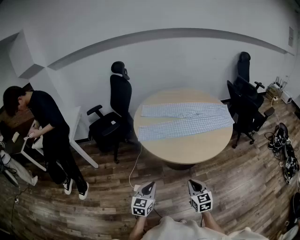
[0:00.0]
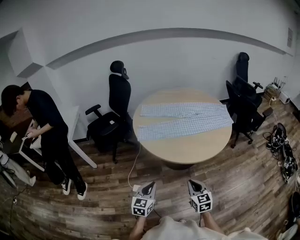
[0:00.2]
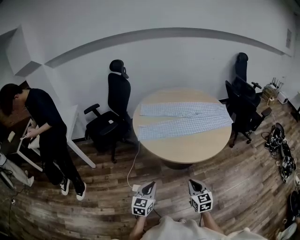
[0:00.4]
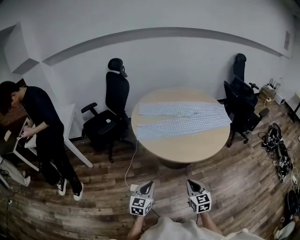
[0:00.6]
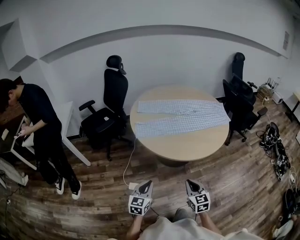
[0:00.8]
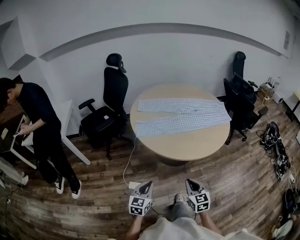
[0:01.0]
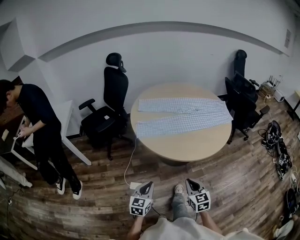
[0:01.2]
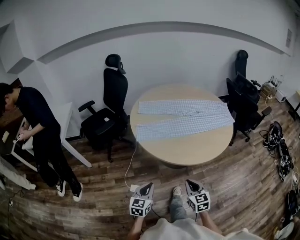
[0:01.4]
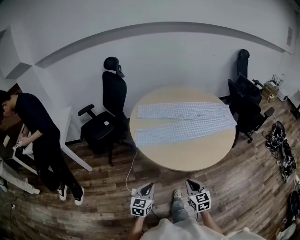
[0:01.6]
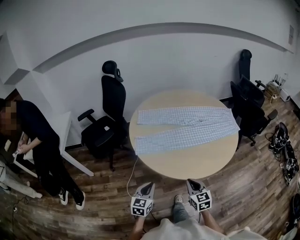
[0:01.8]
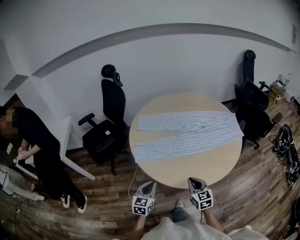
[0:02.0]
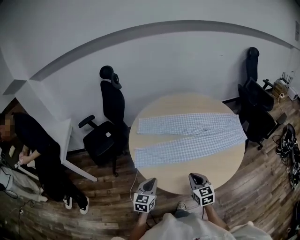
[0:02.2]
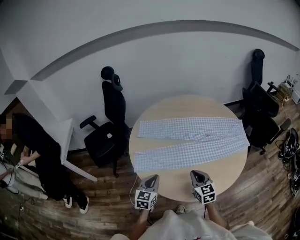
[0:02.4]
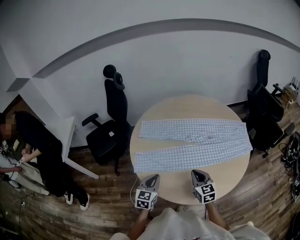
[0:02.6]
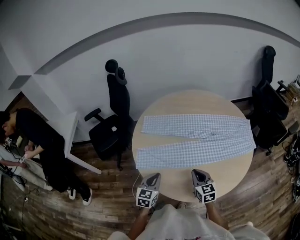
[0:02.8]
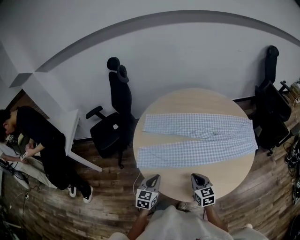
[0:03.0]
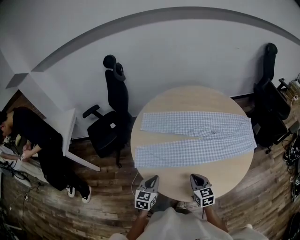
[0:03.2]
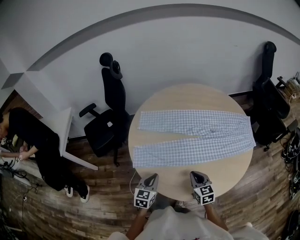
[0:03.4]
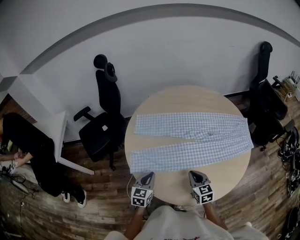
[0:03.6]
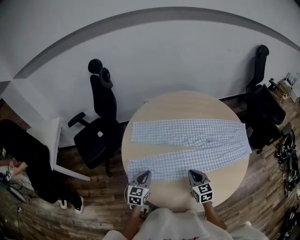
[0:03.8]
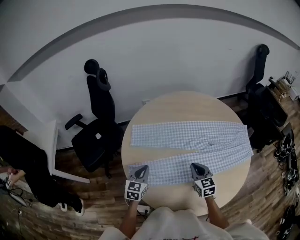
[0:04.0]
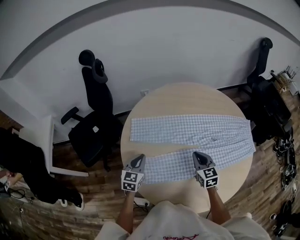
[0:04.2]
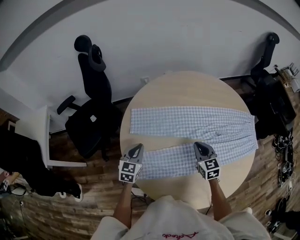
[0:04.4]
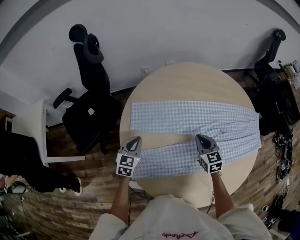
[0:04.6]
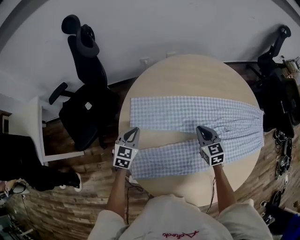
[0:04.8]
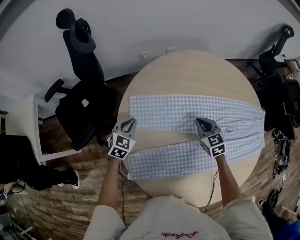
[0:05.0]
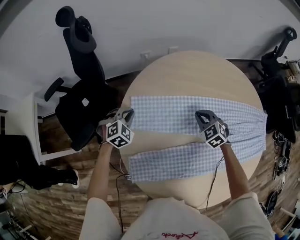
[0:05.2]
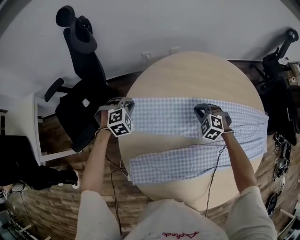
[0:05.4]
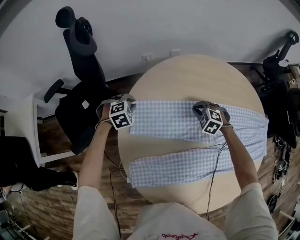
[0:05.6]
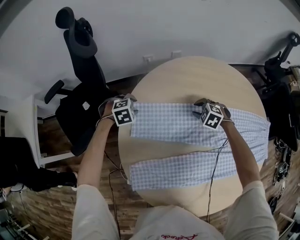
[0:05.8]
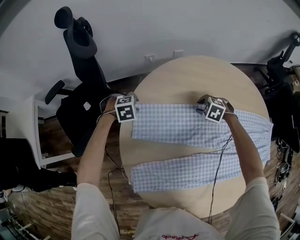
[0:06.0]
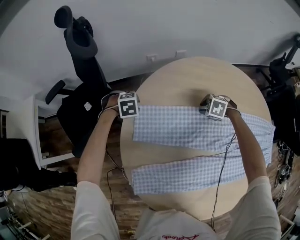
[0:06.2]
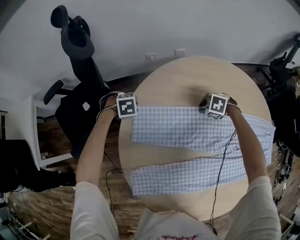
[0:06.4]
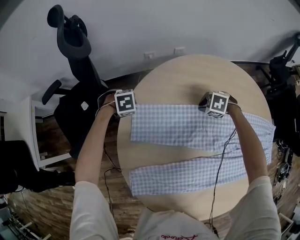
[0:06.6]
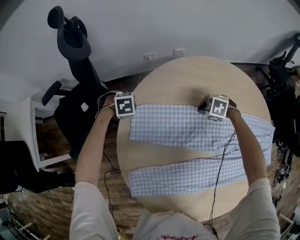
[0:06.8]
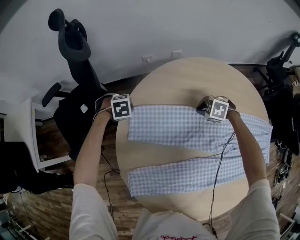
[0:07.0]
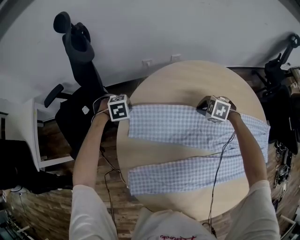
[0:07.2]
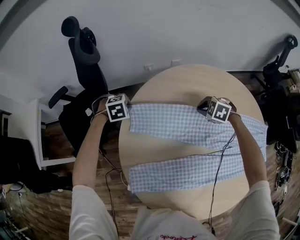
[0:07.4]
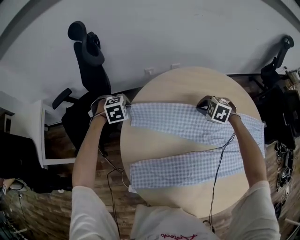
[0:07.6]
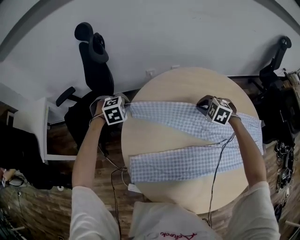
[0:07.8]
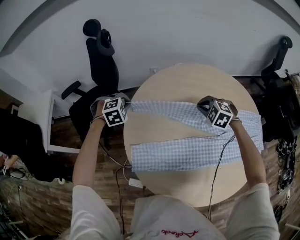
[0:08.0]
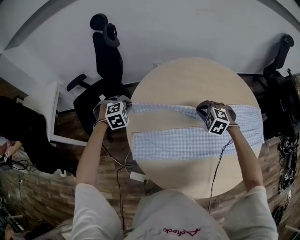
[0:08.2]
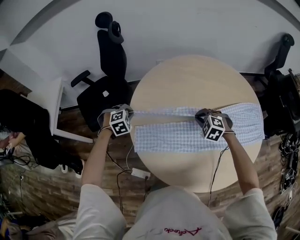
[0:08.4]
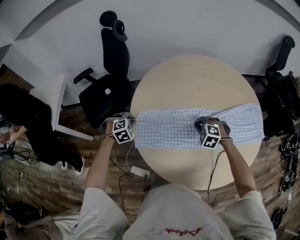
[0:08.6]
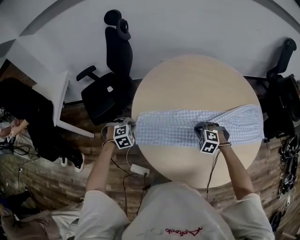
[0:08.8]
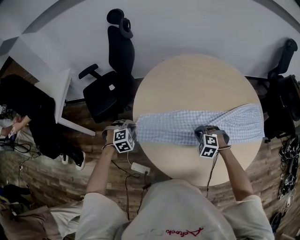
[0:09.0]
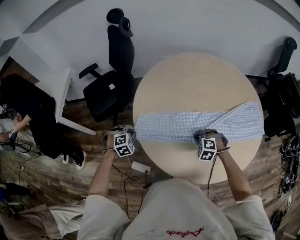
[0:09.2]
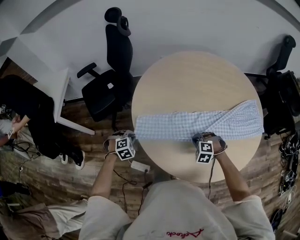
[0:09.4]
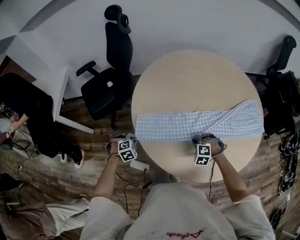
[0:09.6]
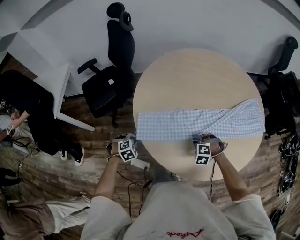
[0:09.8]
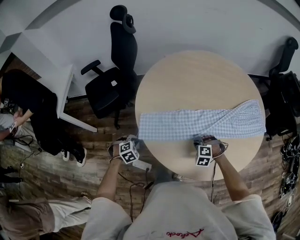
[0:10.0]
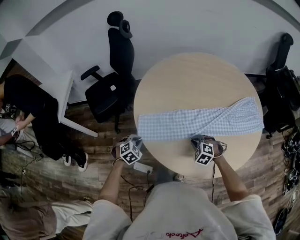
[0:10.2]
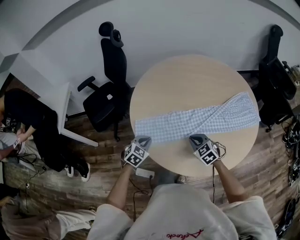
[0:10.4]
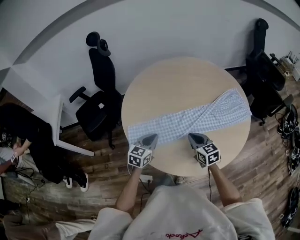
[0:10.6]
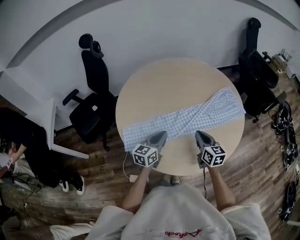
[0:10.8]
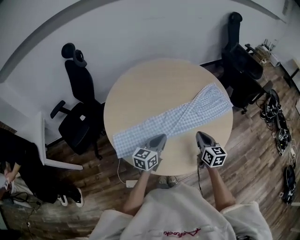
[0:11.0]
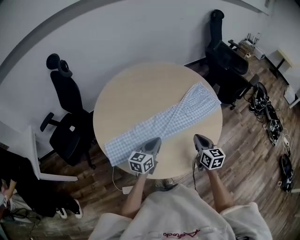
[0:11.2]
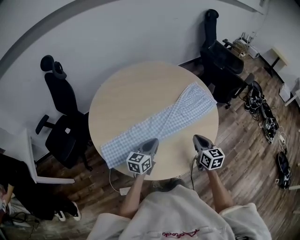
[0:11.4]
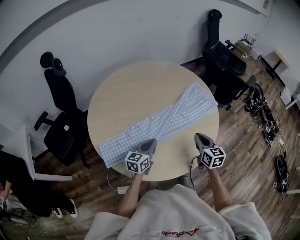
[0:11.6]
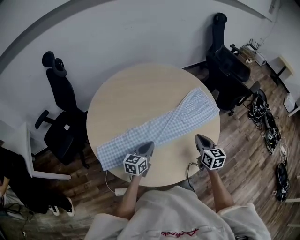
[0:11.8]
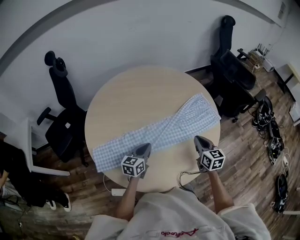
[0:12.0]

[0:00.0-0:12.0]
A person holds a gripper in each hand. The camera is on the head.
0:00.0 to 0:01.6: The two grippers go approximately 10 cm forward and to the left.
0:01.6 to 0:03.0: The two grippers go about 25 cm forward.
0:03.0 to 0:04.4: The two grippers go roughly 30 cm forward.
0:04.4 to 0:06.0: The left gripper changes place by roughly 30 cm, angles its fingers downward, by roughly 50 degrees, and opens, while the right gripper ends up some 30 cm from where it was, angles its fingers downward, by some 50 degrees, and opens up.
0:06.0 to 0:07.6: Both grippers travel together upward, approximately 10 cm. The right gripper closes. Meanwhile the left gripper closes its fingers.
0:07.6 to 0:09.0: The grippers both shift backward by about 35 cm.
0:09.0 to 0:10.4: The right gripper is displaced backward by about 10 cm, travels downward and back again, approximately 10 cm each way, and rotates approximately 50 degrees. The left gripper shifts some 15 cm backward and to the right, and swivels about 30 degrees.
0:10.4 to 0:12.0: The right gripper shifts by approximately 30 cm, and changes its angle by roughly 50 degrees. Meanwhile the left gripper travels upward and back again, some 10 cm each way, and rotates some 40 degrees.

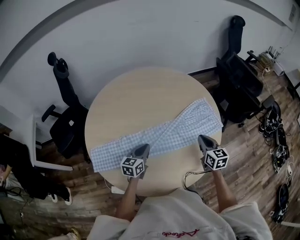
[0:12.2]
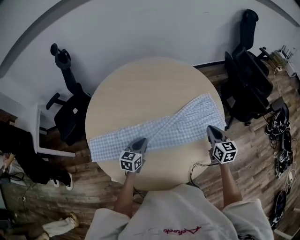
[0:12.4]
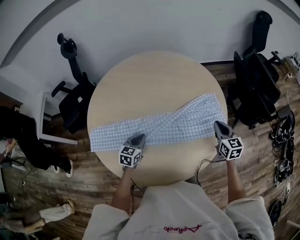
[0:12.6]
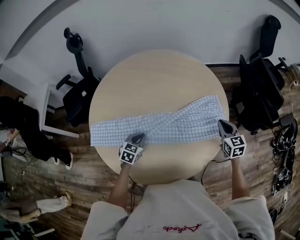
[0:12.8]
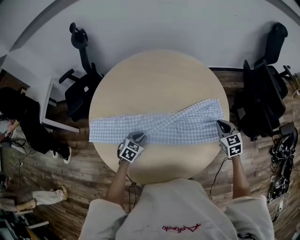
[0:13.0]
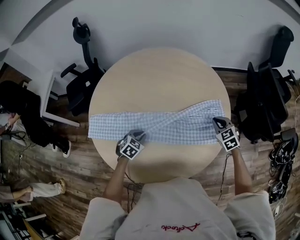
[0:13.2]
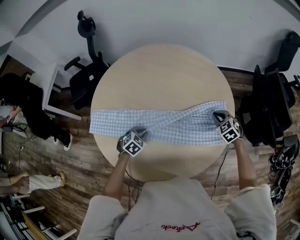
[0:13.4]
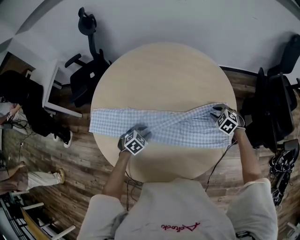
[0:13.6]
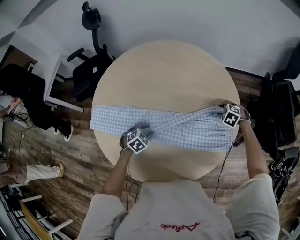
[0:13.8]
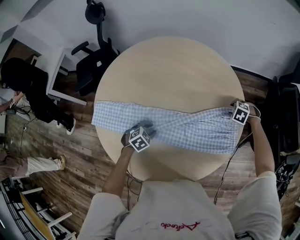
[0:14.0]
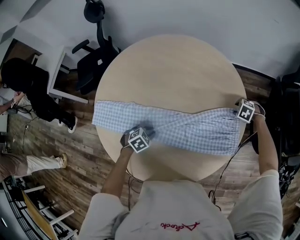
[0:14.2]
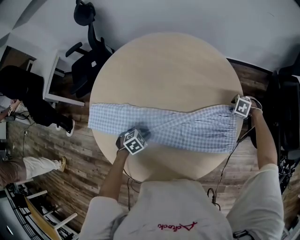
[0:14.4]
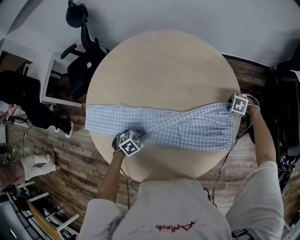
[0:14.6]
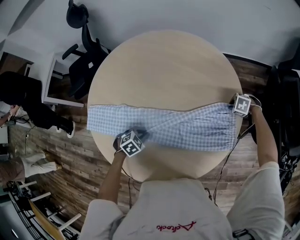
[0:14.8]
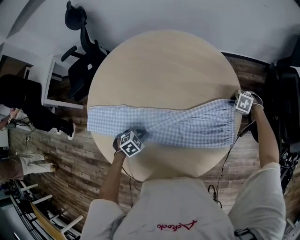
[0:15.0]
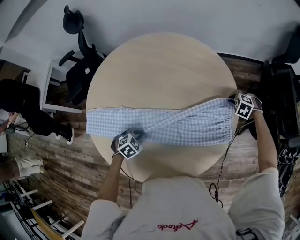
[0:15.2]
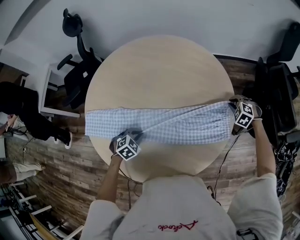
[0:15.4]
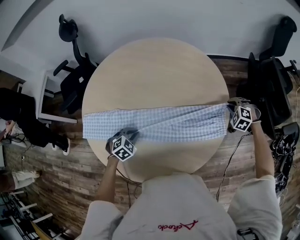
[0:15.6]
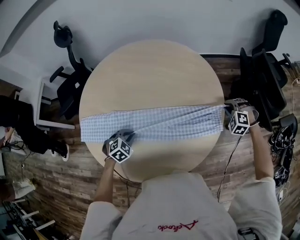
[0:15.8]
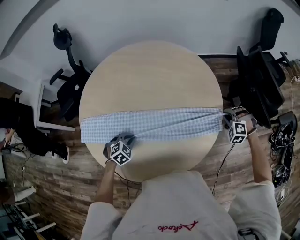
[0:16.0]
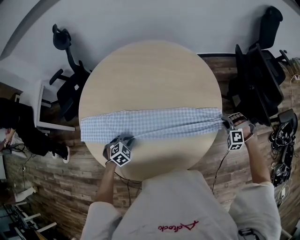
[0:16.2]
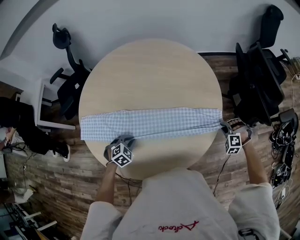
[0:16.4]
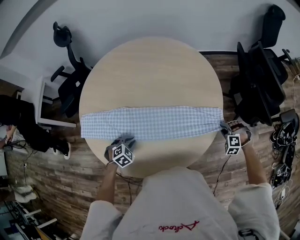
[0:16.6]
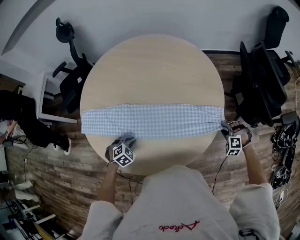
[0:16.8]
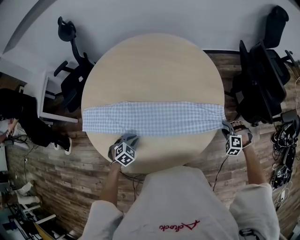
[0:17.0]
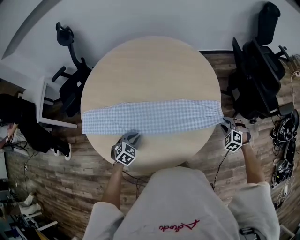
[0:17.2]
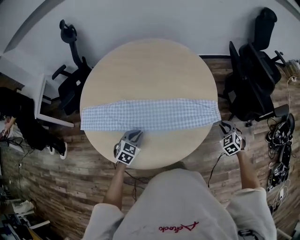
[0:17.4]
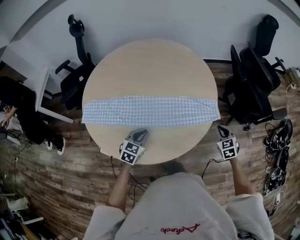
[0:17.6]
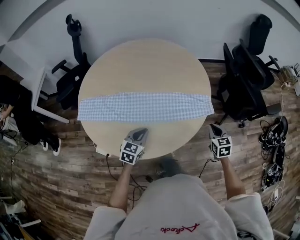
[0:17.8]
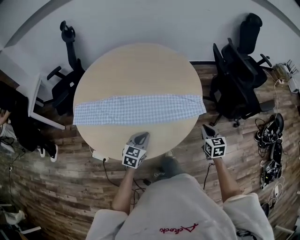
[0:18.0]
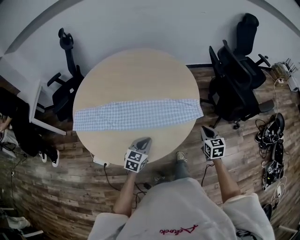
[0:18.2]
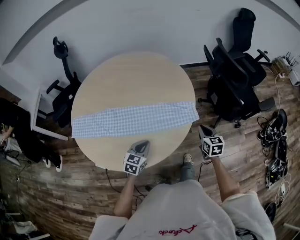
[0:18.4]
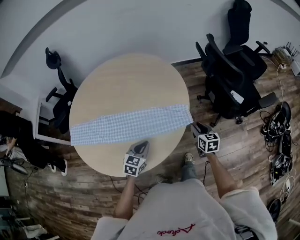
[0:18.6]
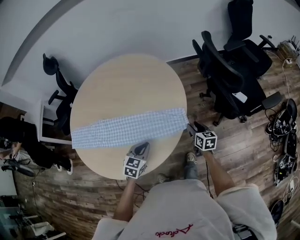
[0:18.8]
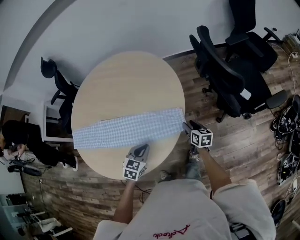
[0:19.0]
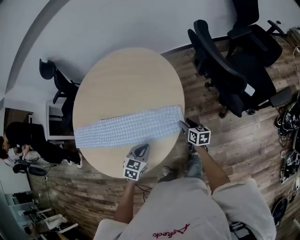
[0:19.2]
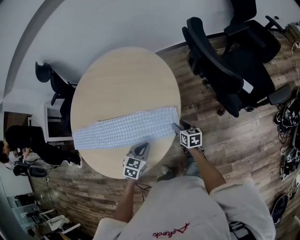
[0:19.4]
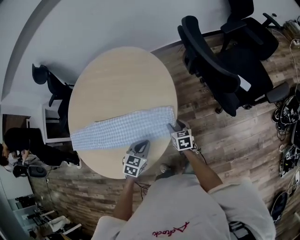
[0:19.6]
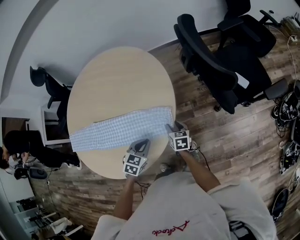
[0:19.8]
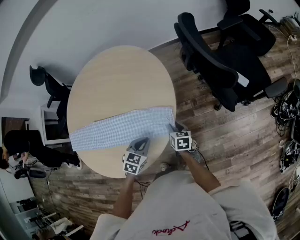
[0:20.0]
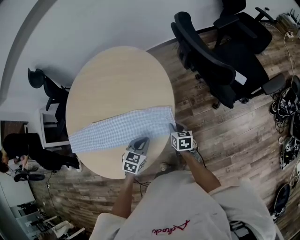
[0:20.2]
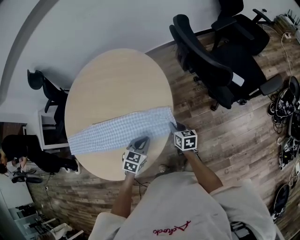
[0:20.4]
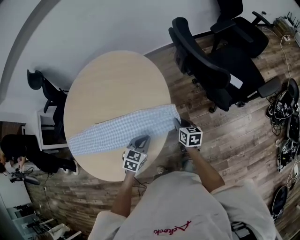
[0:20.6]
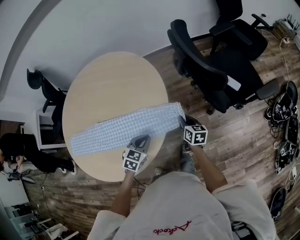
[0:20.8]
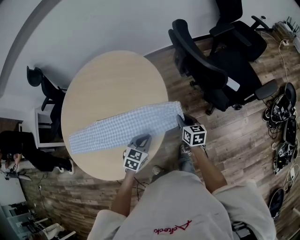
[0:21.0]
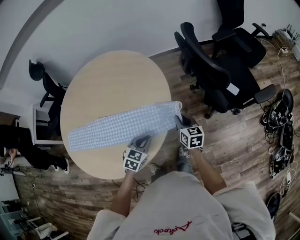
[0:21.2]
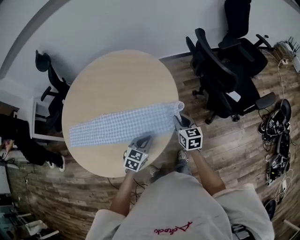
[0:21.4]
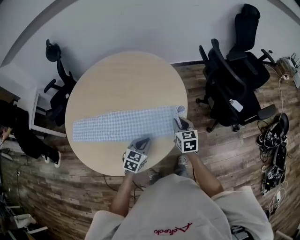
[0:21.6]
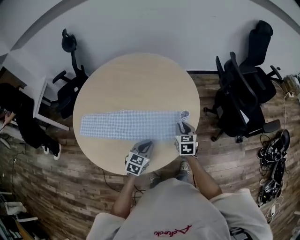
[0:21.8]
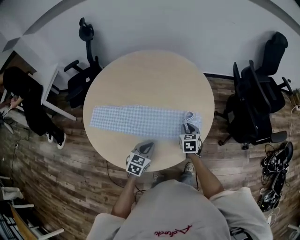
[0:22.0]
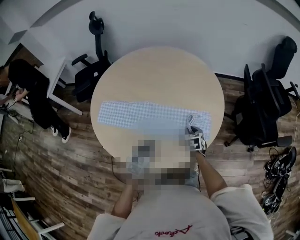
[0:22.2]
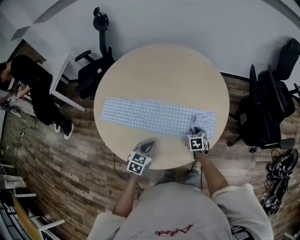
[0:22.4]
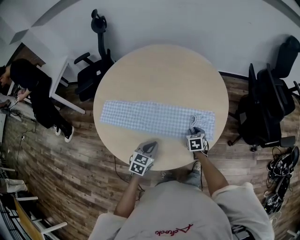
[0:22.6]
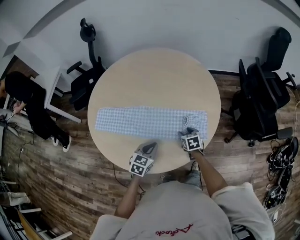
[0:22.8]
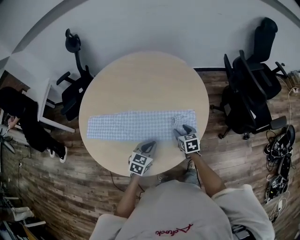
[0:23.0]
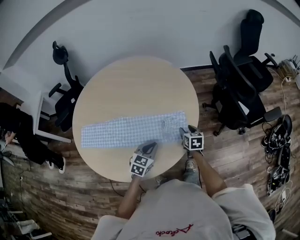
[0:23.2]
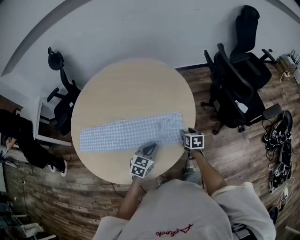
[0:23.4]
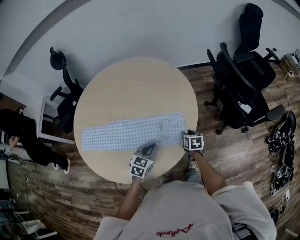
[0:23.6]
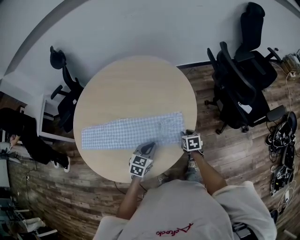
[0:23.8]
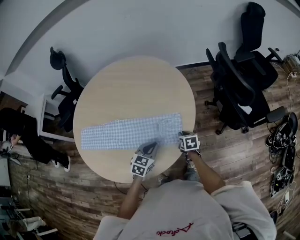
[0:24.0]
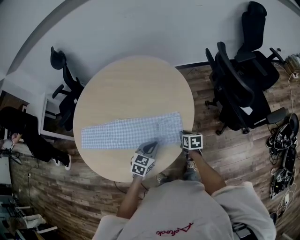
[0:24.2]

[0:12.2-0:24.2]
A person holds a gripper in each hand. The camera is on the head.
0:12.2 to 0:13.8: The right gripper moves forward and downward, roughly 30 cm, points its fingers about 50 degrees further downward, and opens up, while the left gripper heads downward, covering approximately 10 cm, points its fingers approximately 40 degrees further downward, and opens its fingers.
0:13.8 to 0:15.2: The left gripper closes its fingers; the right gripper shifts by roughly 10 cm.
0:15.2 to 0:16.6: The right gripper heads backward and to the right, covering about 25 cm. The left gripper moves backward, approximately 10 cm.
0:16.6 to 0:18.2: The left gripper shifts about 20 cm to the right and upward, and points its fingers some 40 degrees further upward. Meanwhile the right gripper moves upward and backward, about 15 cm, and rotates around the line of its fingers by approximately 80 degrees, clockwise from behind.
0:18.2 to 0:19.8: The right gripper shifts some 20 cm downward and forward, changes its angle by some 30 degrees, and opens up. The left gripper heads to the right and forward, covering some 20 cm, and turns by roughly 20 degrees.
0:19.8 to 0:21.2: The right gripper is displaced upward and to the right by roughly 10 cm, and closes its fingers.
0:21.2 to 0:22.6: The two grippers go roughly 25 cm to the left. The right gripper swivels about 40 degrees, while the left gripper rotates about 20 degrees.
0:22.6 to 0:24.2: The left gripper goes roughly 20 cm to the right and forward; the right gripper is displaced to the right by roughly 15 cm, turns by approximately 30 degrees, and opens, then closes again.
